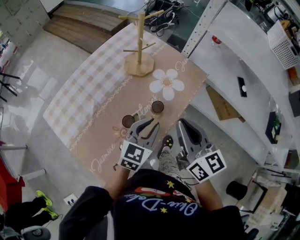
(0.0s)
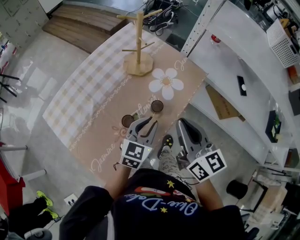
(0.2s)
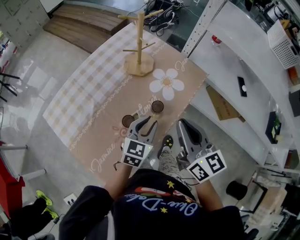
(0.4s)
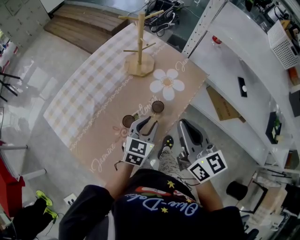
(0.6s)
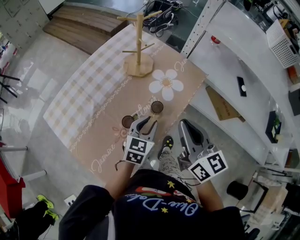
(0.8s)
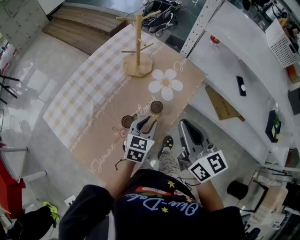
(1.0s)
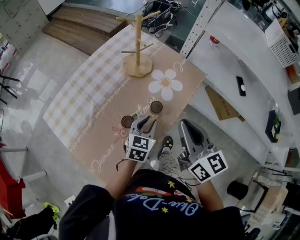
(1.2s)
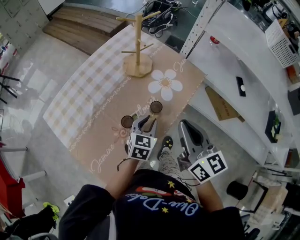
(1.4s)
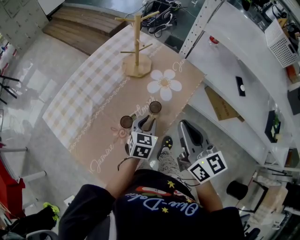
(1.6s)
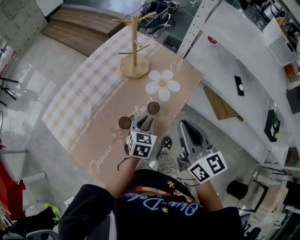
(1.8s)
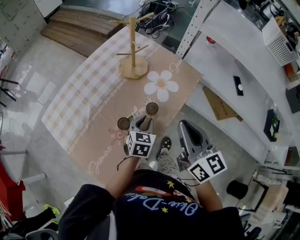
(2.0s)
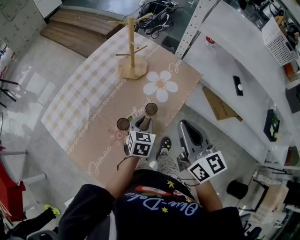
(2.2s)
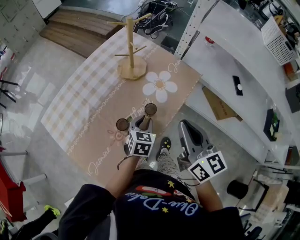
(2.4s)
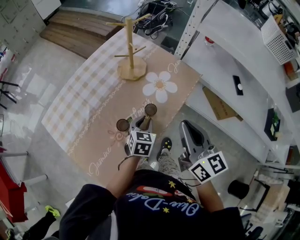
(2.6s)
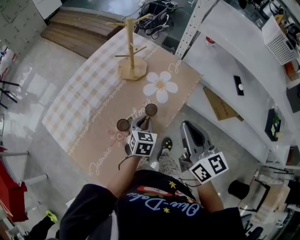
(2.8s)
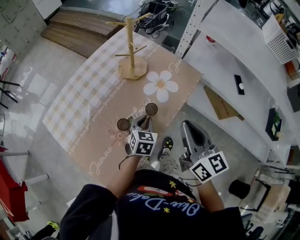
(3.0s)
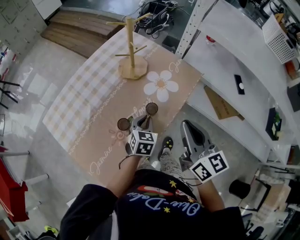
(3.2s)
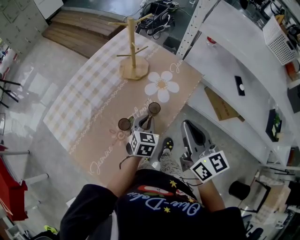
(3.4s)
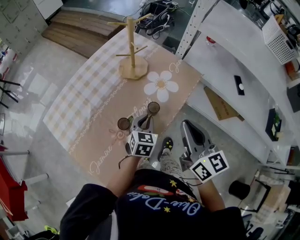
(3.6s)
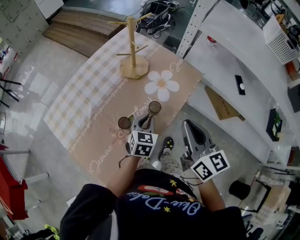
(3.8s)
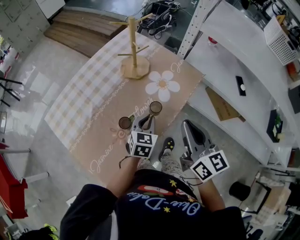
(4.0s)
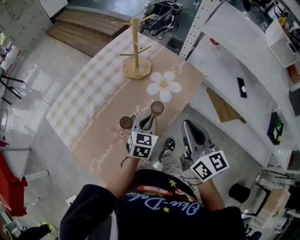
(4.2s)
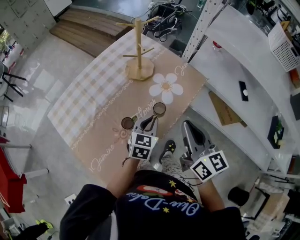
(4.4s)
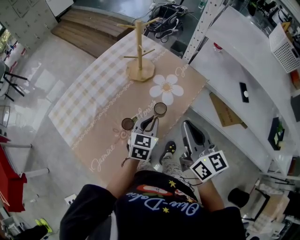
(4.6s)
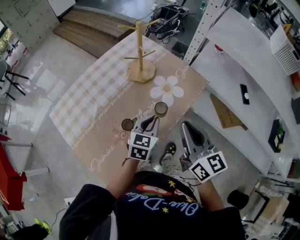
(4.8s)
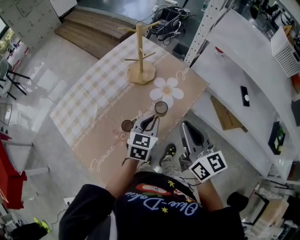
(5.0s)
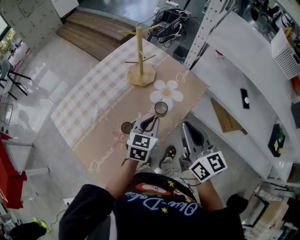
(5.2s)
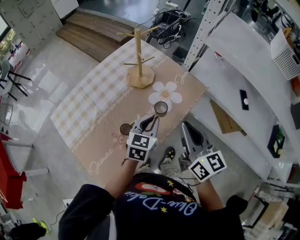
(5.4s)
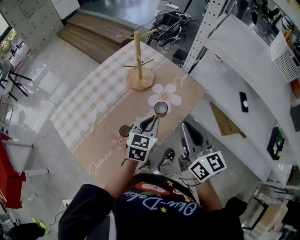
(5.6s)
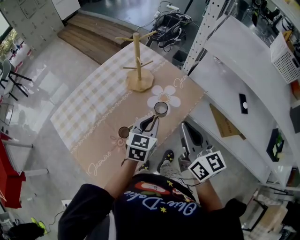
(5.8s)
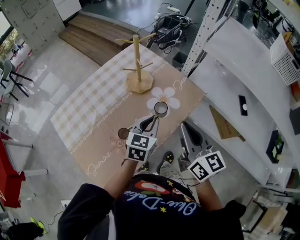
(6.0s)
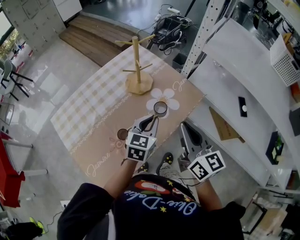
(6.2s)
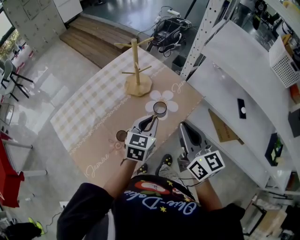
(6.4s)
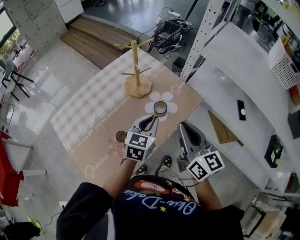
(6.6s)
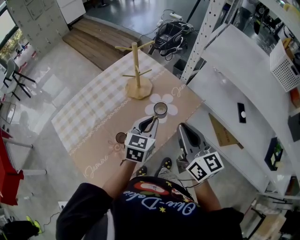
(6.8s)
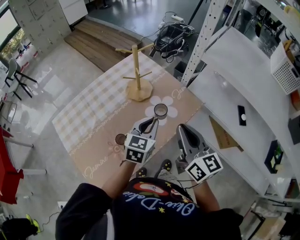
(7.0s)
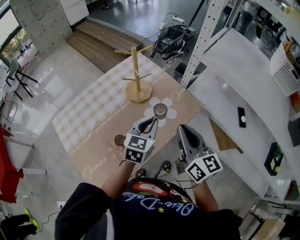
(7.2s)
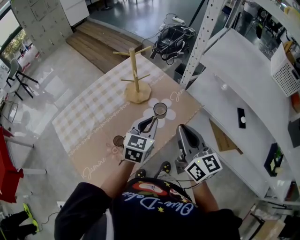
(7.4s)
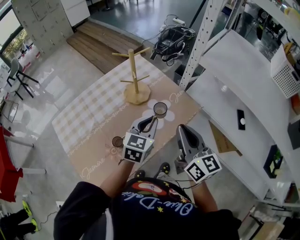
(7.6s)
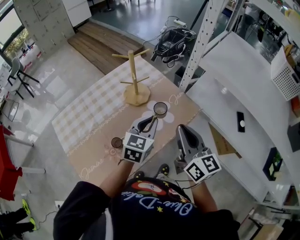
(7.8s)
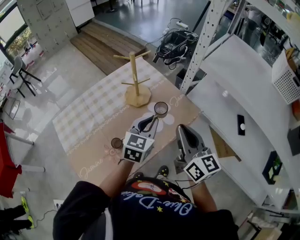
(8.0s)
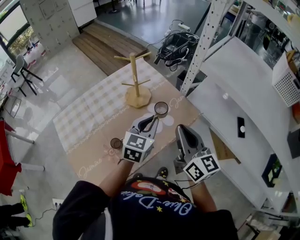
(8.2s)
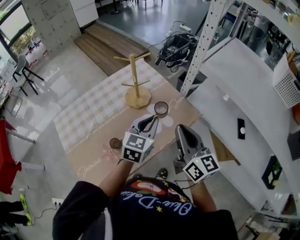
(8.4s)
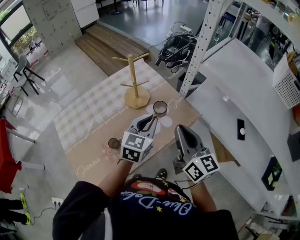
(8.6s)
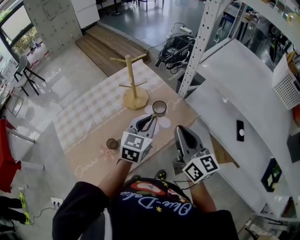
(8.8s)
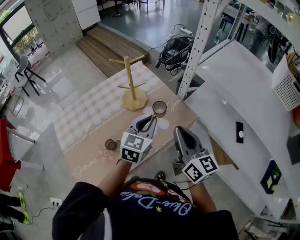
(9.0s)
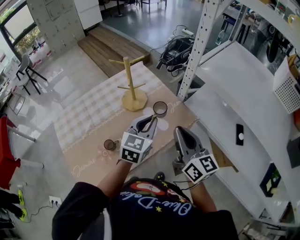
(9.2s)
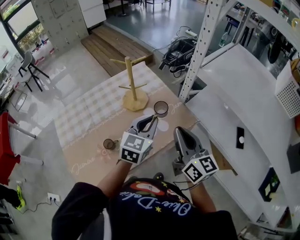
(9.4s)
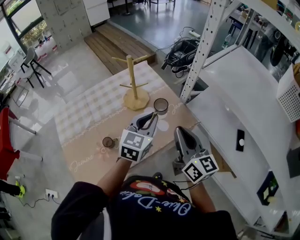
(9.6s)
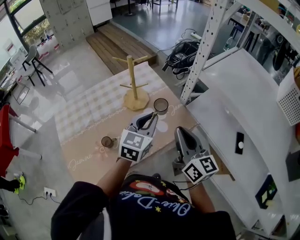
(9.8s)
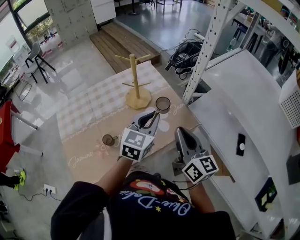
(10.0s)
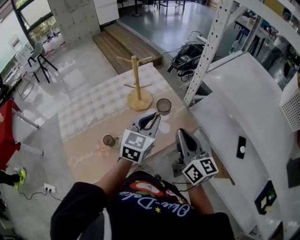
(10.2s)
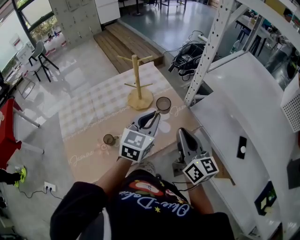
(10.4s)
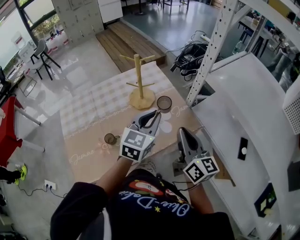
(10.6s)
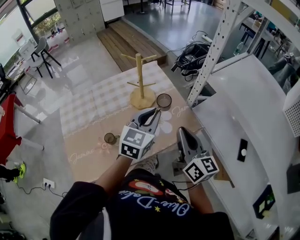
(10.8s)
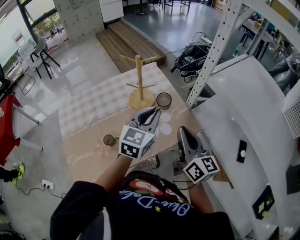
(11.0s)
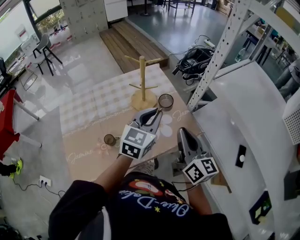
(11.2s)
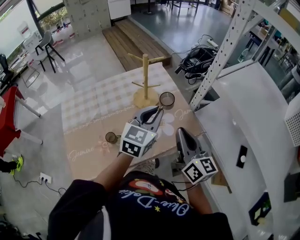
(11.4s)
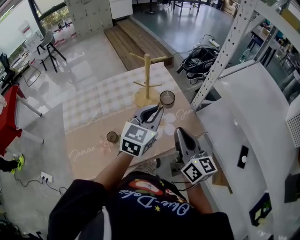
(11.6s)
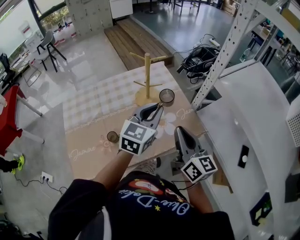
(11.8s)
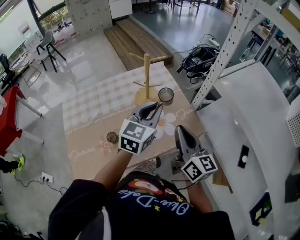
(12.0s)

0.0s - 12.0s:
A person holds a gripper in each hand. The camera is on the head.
0.0s - 1.6s: The left gripper goes approximately 10 cm downward.
1.6s - 3.0s: The grippers move only a little.
3.0s - 4.4s: The left gripper moves upward, roughly 5 cm.
4.4s - 6.0s: The left gripper travels upward by approximately 5 cm, while the right gripper shifts by about 5 cm.
6.0s - 7.6s: The left gripper ends up about 5 cm from where it was.
7.6s - 9.0s: The grippers stay close to where they were, moving slightly.
9.0s - 10.4s: The grippers move only a little.
10.4s - 12.0s: The grippers stay close to where they were, moving slightly.

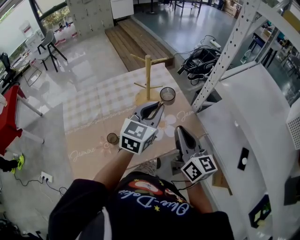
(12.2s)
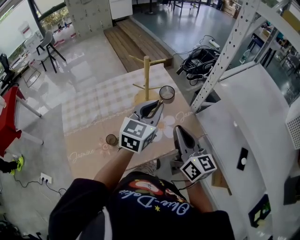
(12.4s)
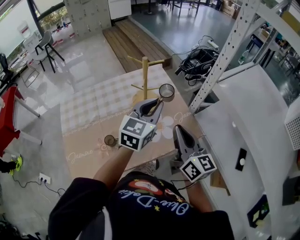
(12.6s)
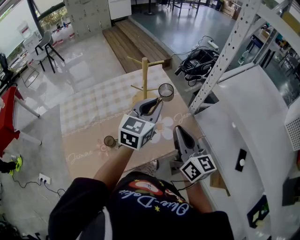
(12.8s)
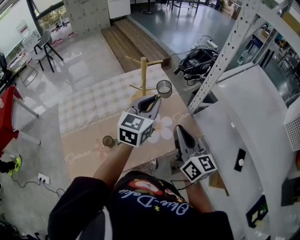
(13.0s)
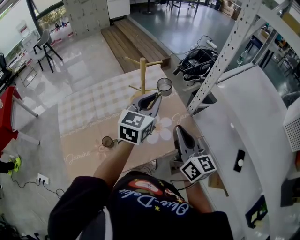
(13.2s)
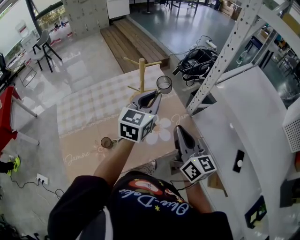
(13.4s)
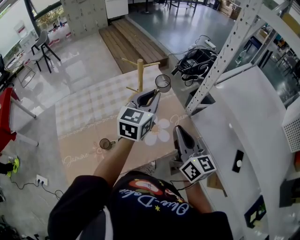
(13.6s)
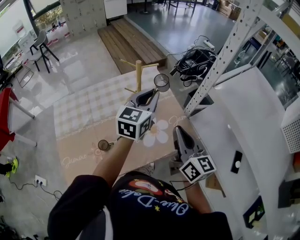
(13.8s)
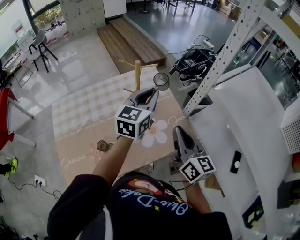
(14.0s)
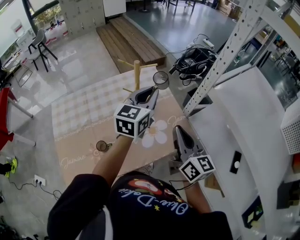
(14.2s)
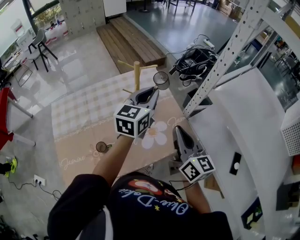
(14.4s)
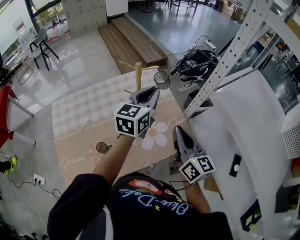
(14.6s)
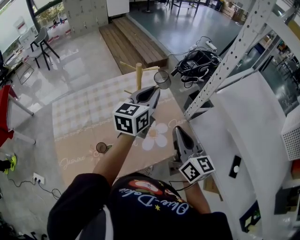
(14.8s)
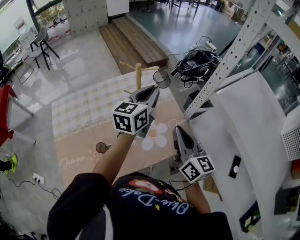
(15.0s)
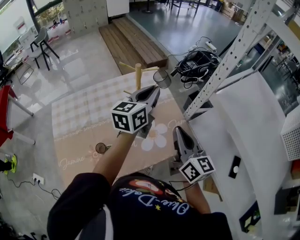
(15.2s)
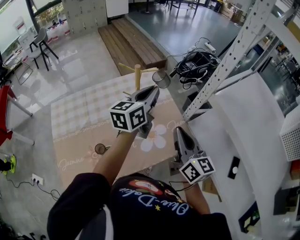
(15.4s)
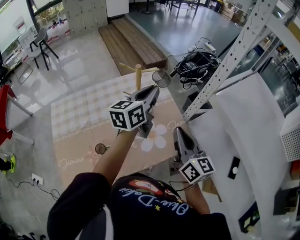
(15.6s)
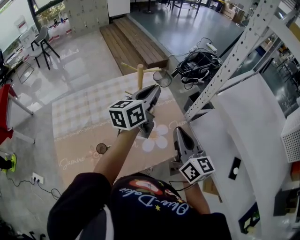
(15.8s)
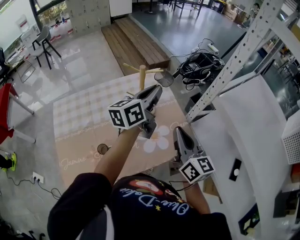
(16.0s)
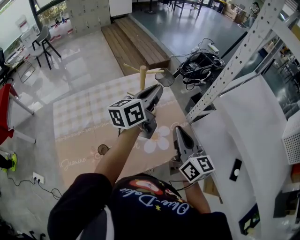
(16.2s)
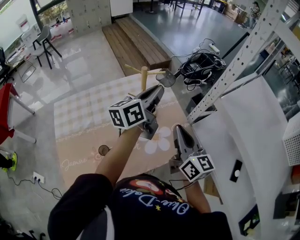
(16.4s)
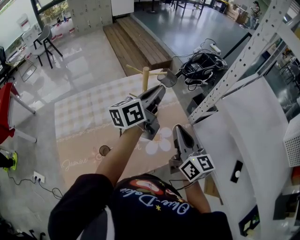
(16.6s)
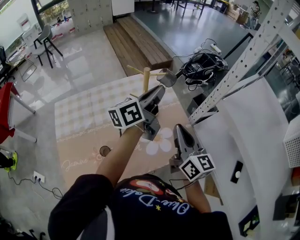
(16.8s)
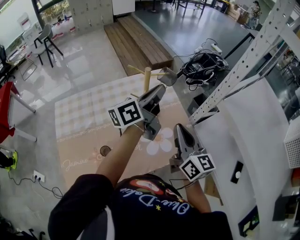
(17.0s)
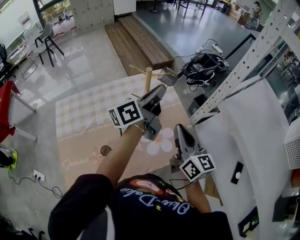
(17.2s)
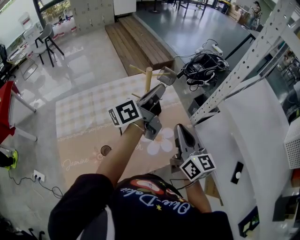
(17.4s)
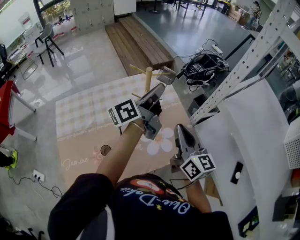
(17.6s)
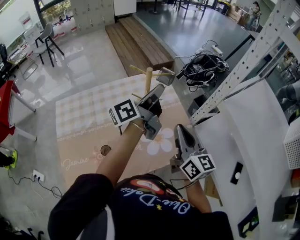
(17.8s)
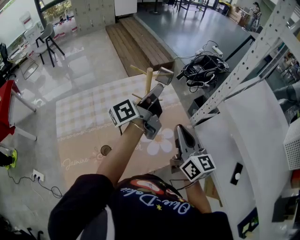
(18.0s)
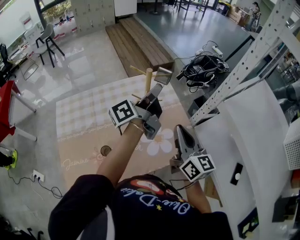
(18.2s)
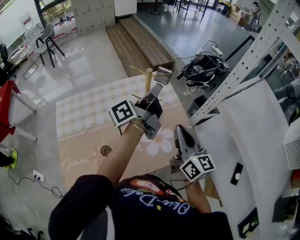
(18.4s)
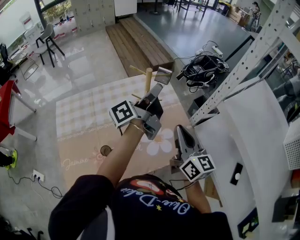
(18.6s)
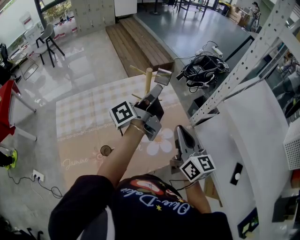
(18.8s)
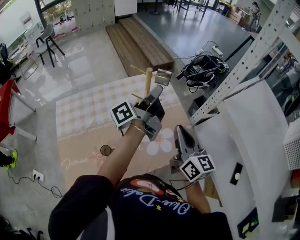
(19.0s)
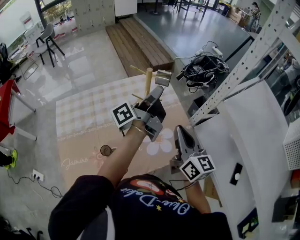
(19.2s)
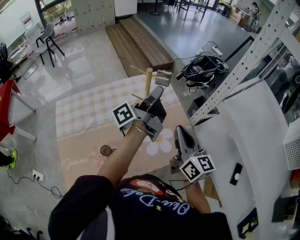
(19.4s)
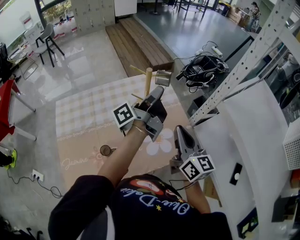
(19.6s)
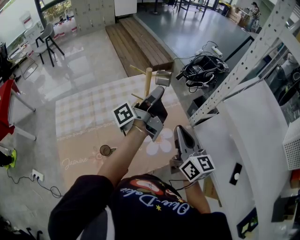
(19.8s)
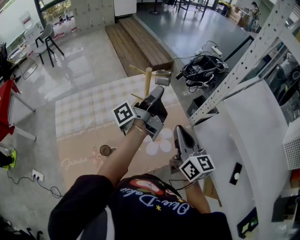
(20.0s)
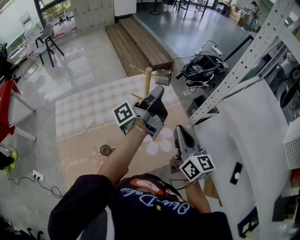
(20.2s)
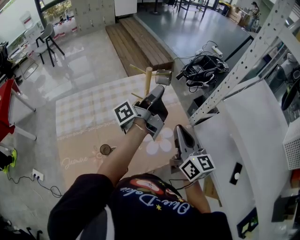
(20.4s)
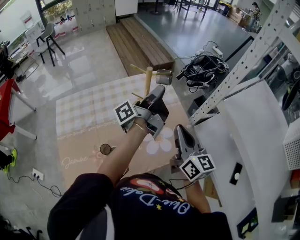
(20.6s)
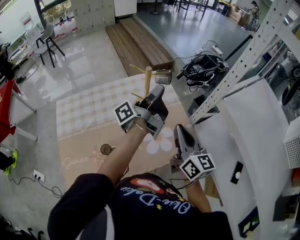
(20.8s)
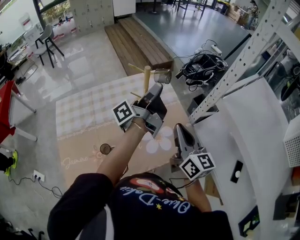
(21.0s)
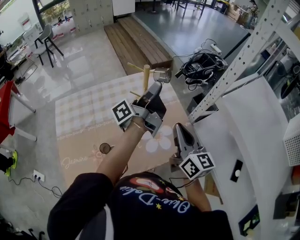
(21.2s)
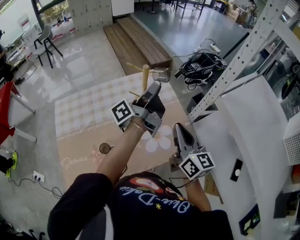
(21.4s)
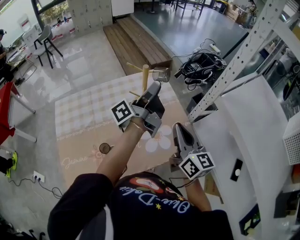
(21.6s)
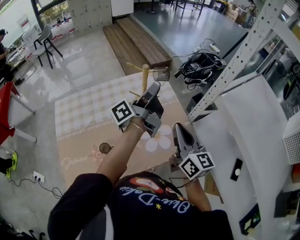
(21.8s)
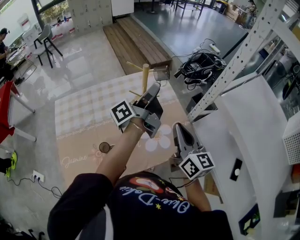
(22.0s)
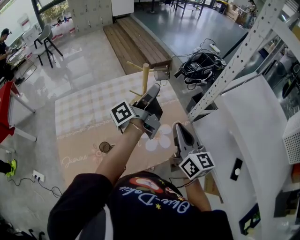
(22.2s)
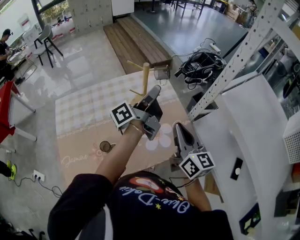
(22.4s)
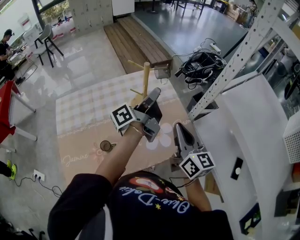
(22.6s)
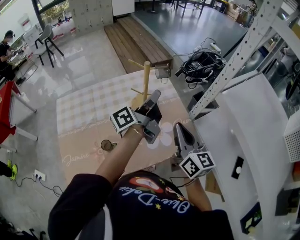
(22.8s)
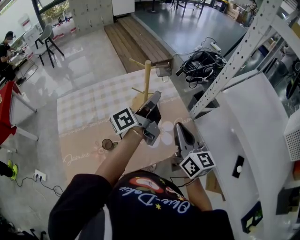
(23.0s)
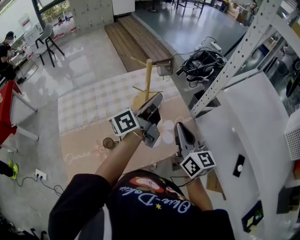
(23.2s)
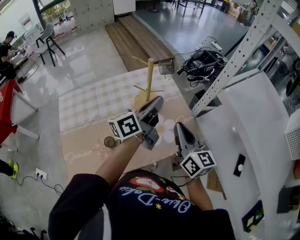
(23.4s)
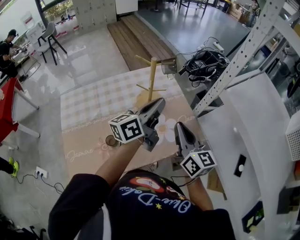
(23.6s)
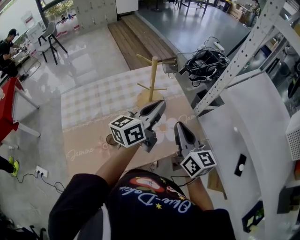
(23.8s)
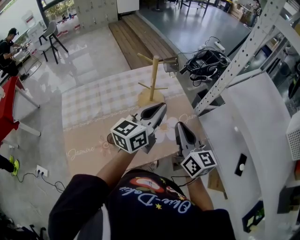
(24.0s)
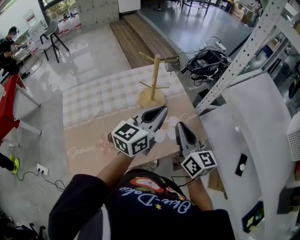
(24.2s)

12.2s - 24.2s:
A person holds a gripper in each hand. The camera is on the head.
12.2s - 13.8s: The left gripper is displaced forward by about 10 cm.
13.8s - 15.2s: The grippers move only a little.
15.2s - 16.6s: The left gripper swivels approximately 20 degrees.
16.6s - 18.2s: The left gripper turns by some 30 degrees.
18.2s - 19.8s: The grippers stay close to where they were, moving slightly.
19.8s - 21.2s: Both grippers stay put.
21.2s - 22.6s: The grippers move only a little.
22.6s - 24.2s: The left gripper heads backward, covering approximately 10 cm, twists approximately 60 degrees clockwise, seen from behind, and closes its fingers.
